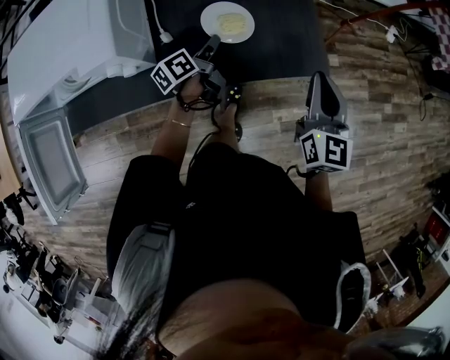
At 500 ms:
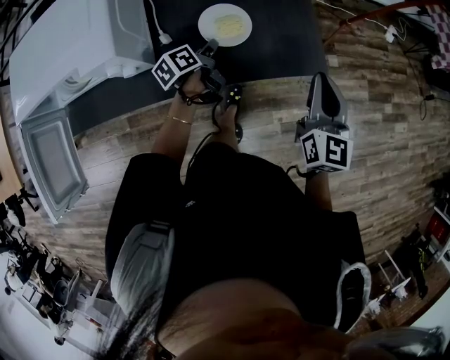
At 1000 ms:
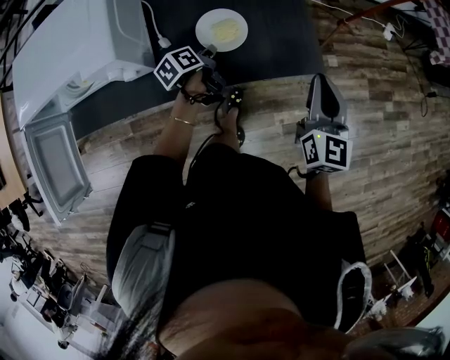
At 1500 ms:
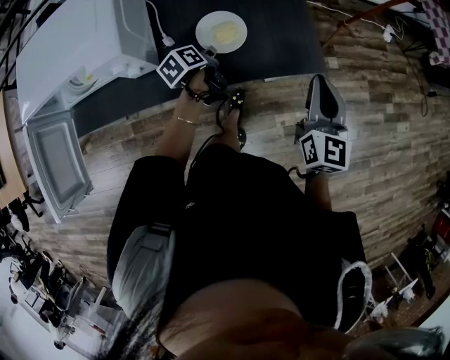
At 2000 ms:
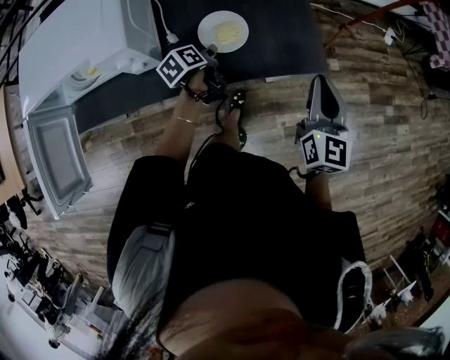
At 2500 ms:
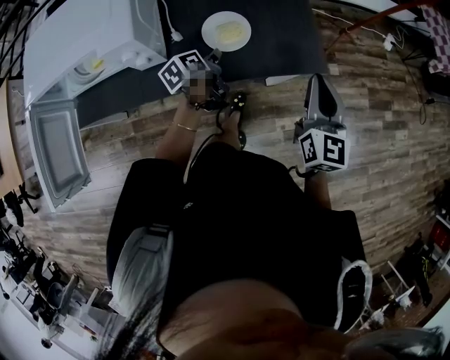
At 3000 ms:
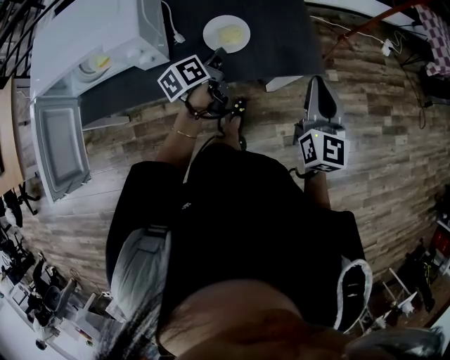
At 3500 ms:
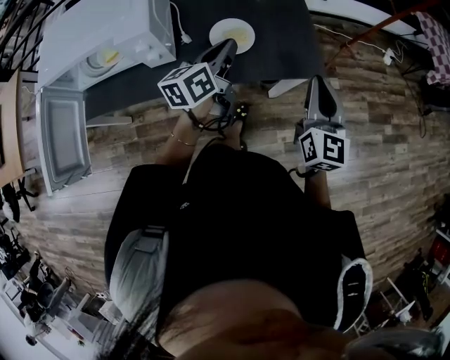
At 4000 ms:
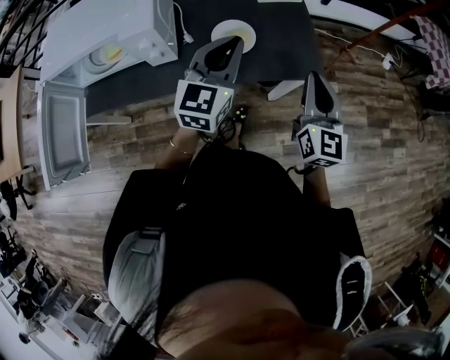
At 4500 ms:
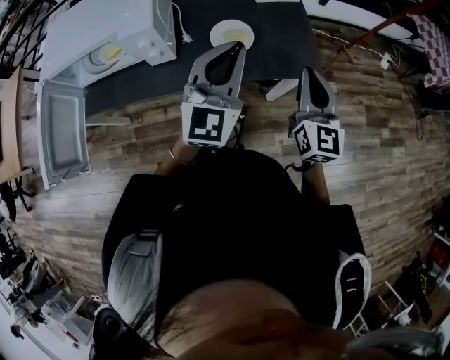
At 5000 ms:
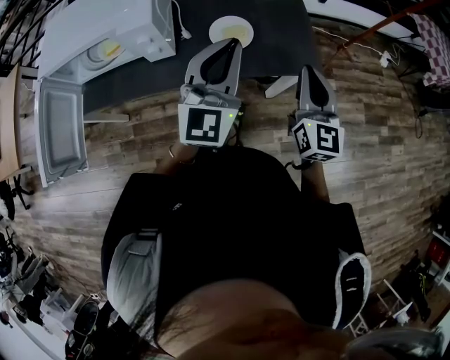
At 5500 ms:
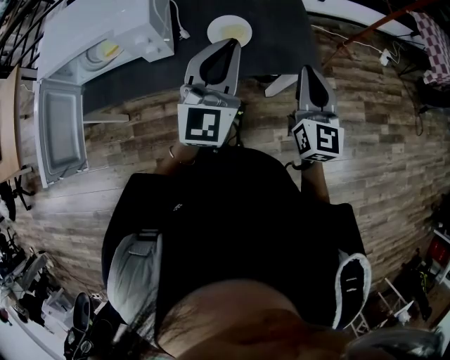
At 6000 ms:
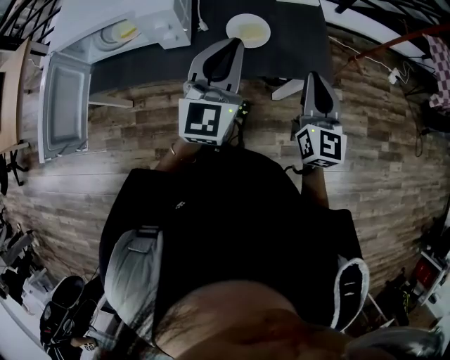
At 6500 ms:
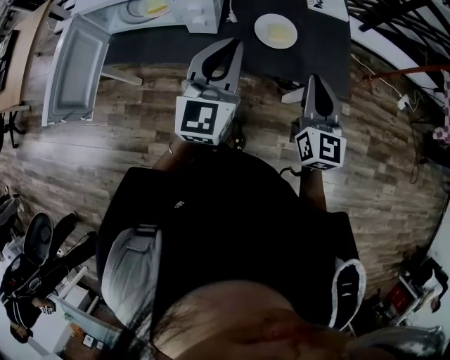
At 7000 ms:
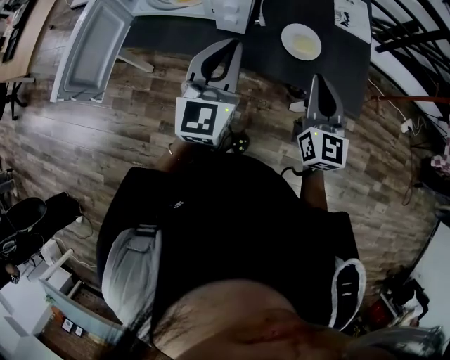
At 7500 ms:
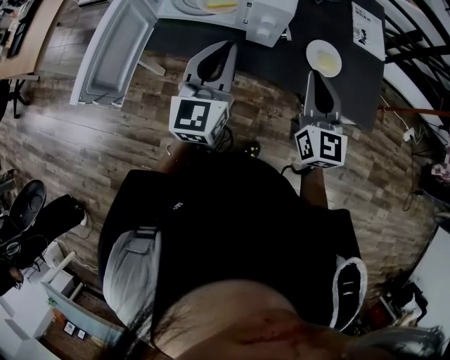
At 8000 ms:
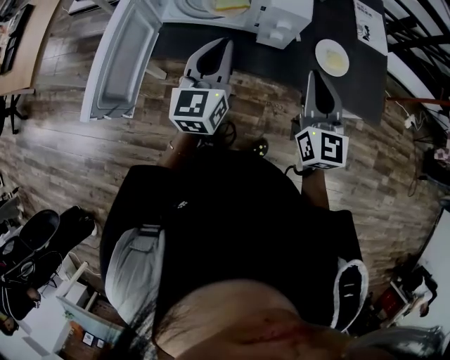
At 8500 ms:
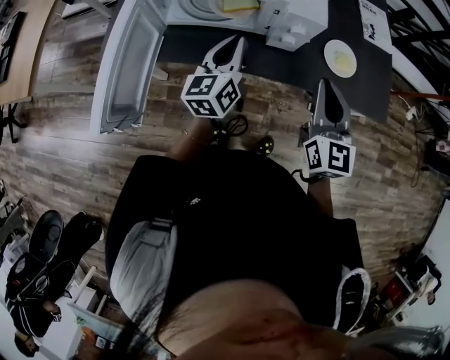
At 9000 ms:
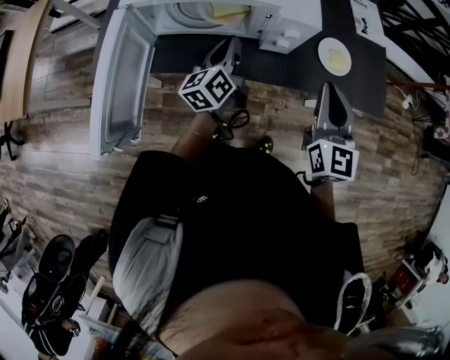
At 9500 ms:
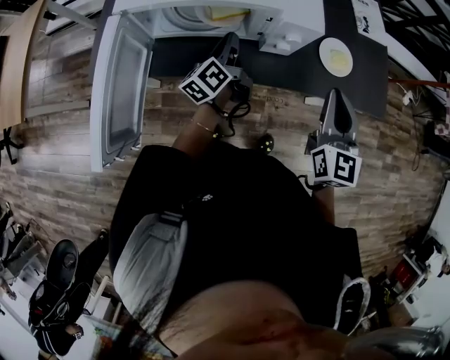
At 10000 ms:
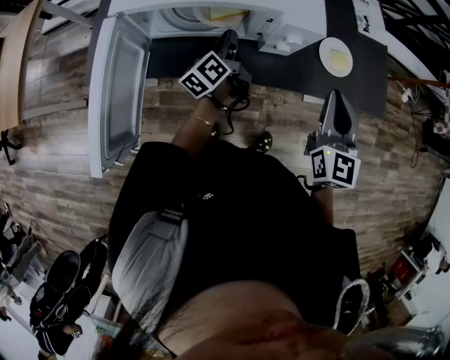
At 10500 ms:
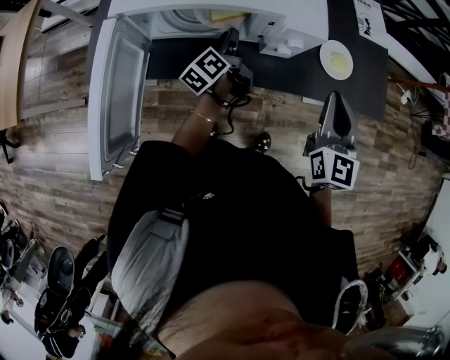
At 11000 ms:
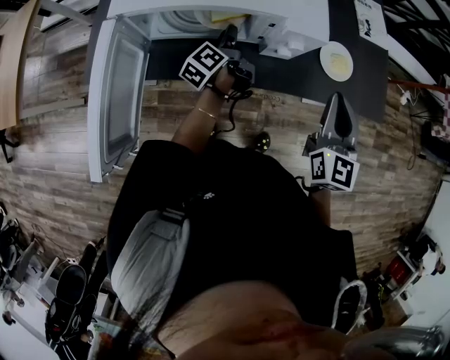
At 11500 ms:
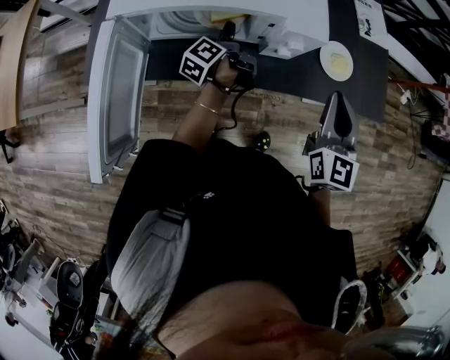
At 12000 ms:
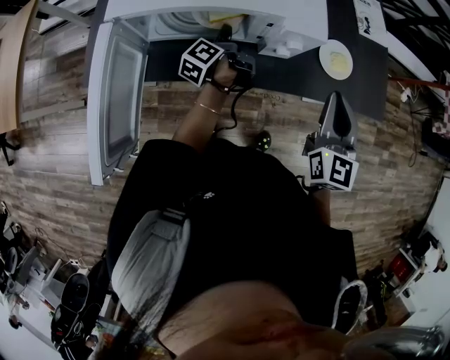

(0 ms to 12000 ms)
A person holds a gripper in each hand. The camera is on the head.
0 ms - 2000 ms: The left gripper changes place by roughly 5 cm, and changes its angle by about 20 degrees.
2000 ms - 4000 ms: The right gripper ends up some 5 cm from where it was. Meanwhile the left gripper moves upward, about 30 cm, and twists some 70 degrees clockwise, seen from behind.
4000 ms - 6000 ms: The left gripper heads backward, covering approximately 5 cm.
6000 ms - 8000 ms: The two grippers go some 30 cm to the left. The left gripper changes its angle by approximately 20 degrees.
8000 ms - 10000 ms: The left gripper goes about 20 cm downward and forward, and rolls counterclockwise, seen from behind, by roughly 50 degrees.
10000 ms - 12000 ms: The left gripper changes its angle by approximately 30 degrees.

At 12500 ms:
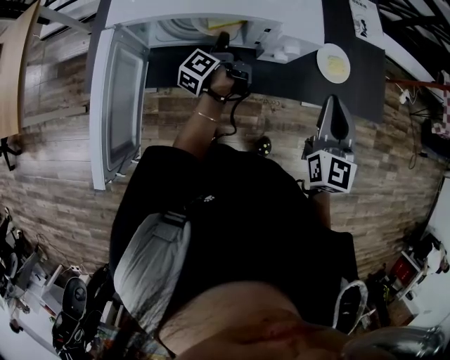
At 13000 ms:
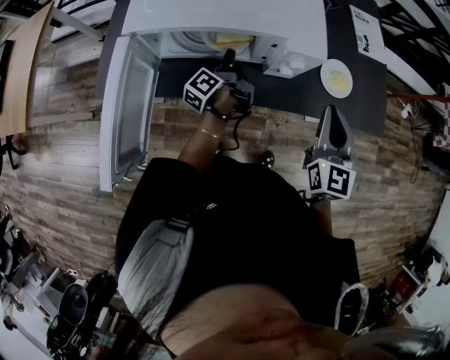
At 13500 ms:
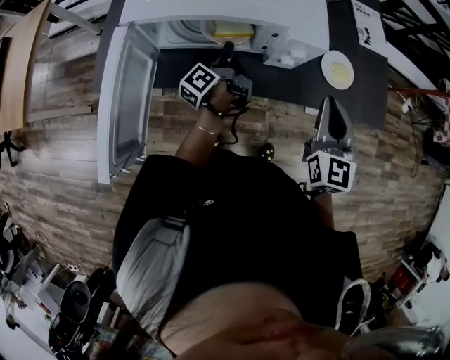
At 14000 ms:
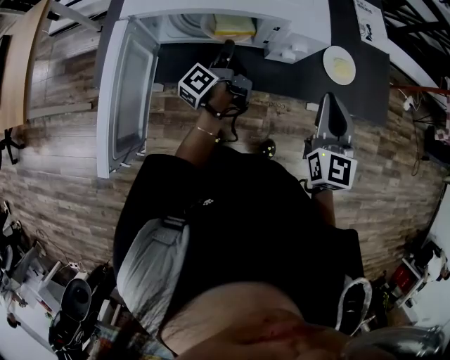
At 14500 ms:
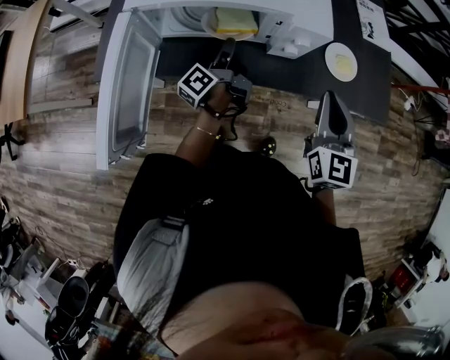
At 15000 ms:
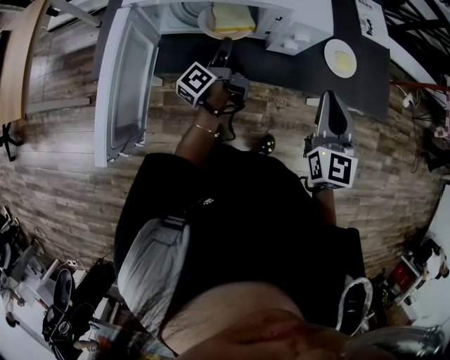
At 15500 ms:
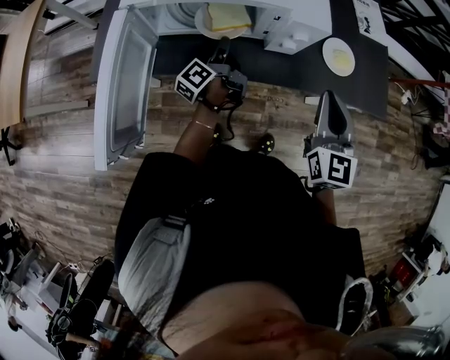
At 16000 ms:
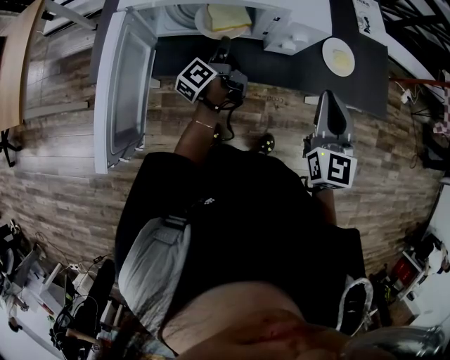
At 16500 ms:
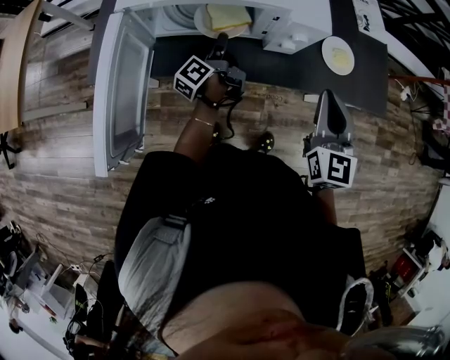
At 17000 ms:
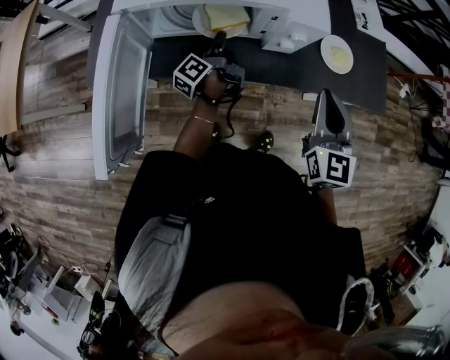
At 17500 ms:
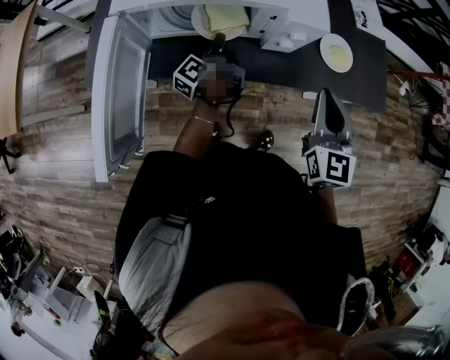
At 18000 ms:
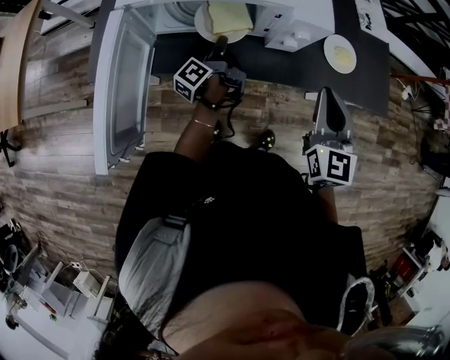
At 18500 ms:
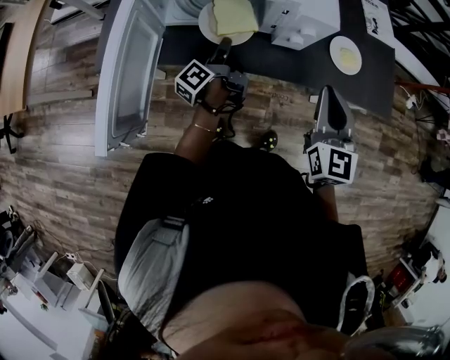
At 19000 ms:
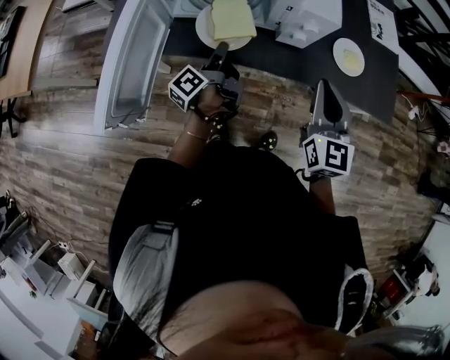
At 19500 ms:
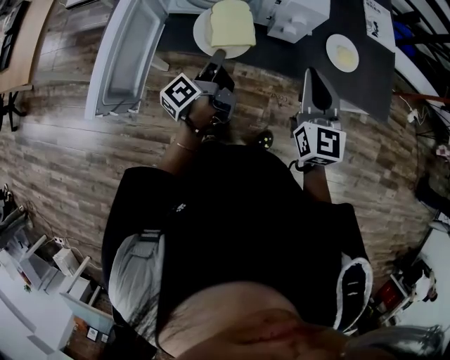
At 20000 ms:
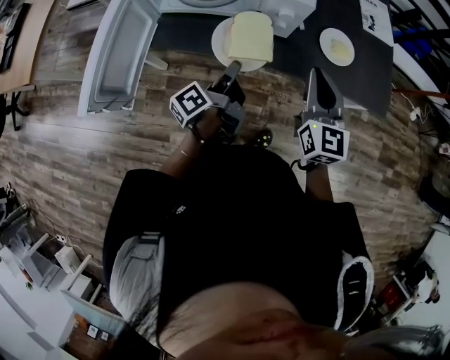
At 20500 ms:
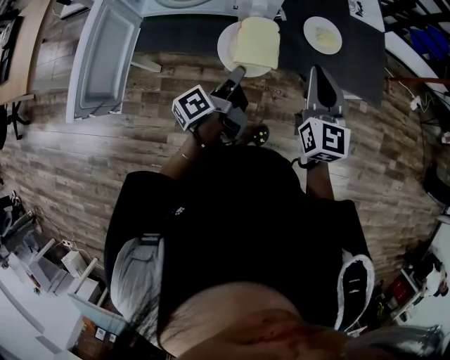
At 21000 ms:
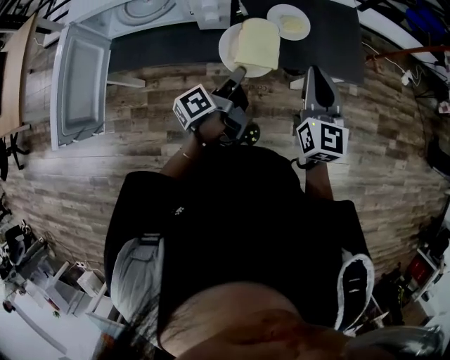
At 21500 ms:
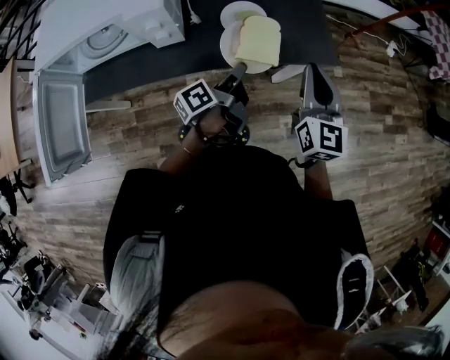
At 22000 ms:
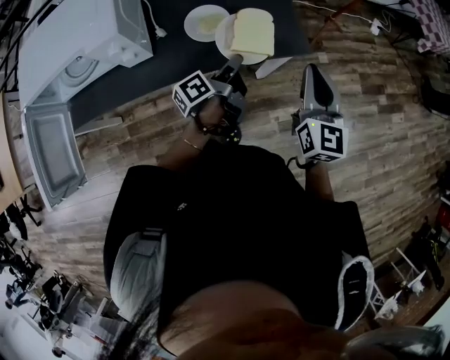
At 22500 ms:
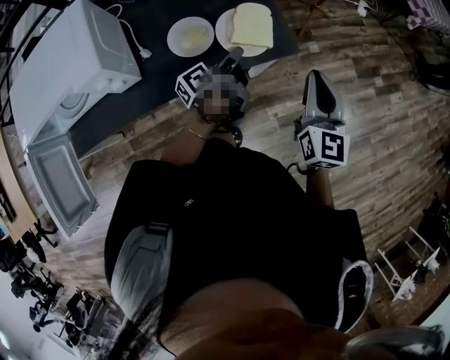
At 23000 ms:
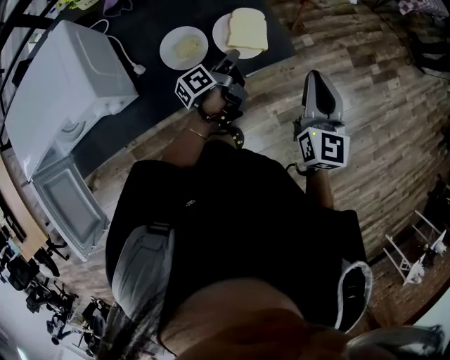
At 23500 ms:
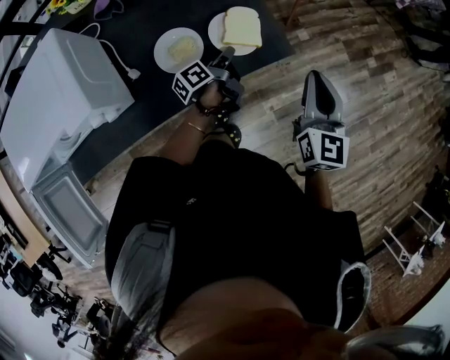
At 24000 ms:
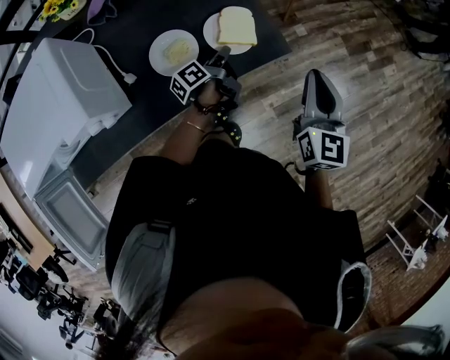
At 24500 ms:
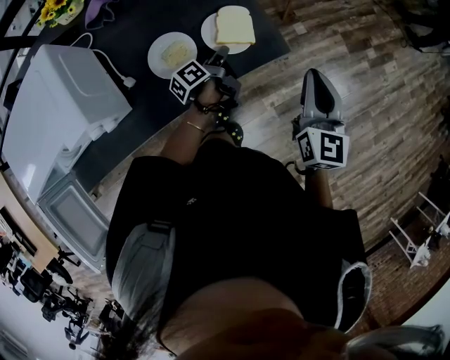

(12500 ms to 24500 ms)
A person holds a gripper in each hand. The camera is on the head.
12500 ms - 14500 ms: The left gripper travels backward by roughly 5 cm.
14500 ms - 18500 ms: There are only small adjustments of the grippers.
18500 ms - 20500 ms: The right gripper is displaced to the right by some 10 cm. Meanwhile the left gripper moves to the right and backward, approximately 20 cm.
20500 ms - 22500 ms: The left gripper changes place by about 40 cm, and swivels about 30 degrees; the right gripper ends up approximately 30 cm from where it was, and swivels roughly 30 degrees.
22500 ms - 24500 ms: The left gripper heads downward and forward, covering about 10 cm.

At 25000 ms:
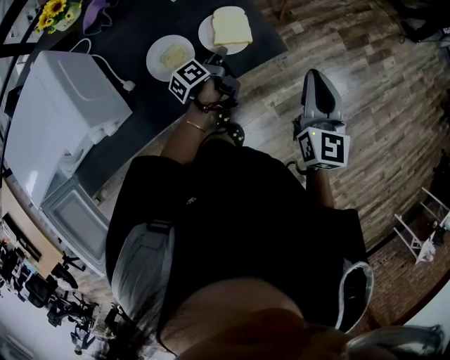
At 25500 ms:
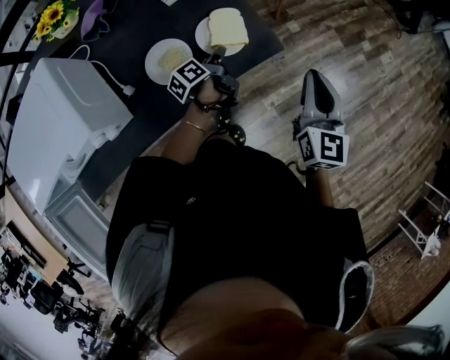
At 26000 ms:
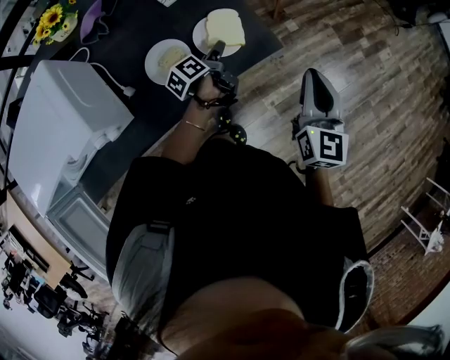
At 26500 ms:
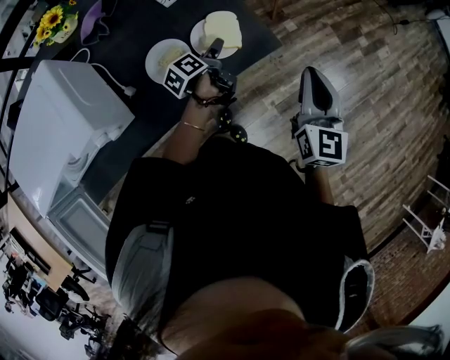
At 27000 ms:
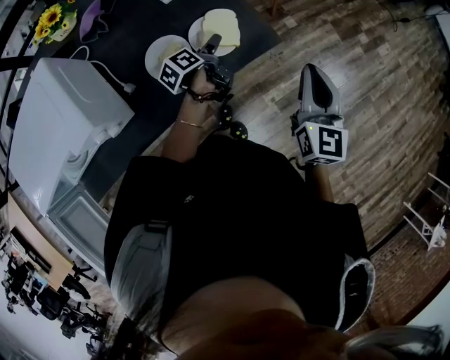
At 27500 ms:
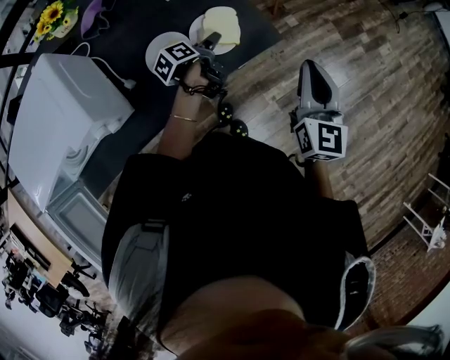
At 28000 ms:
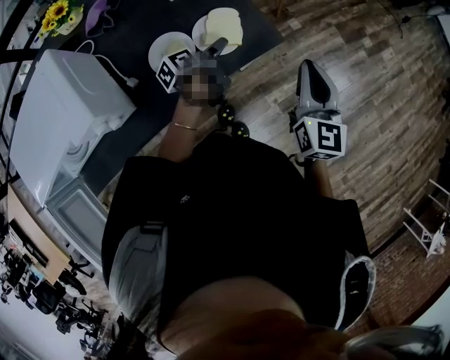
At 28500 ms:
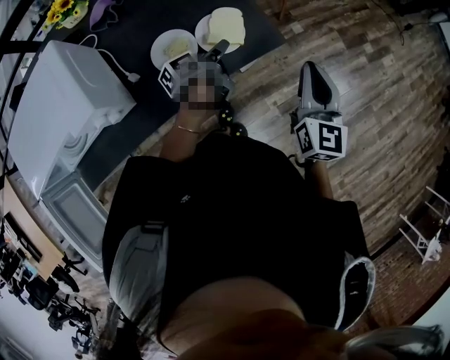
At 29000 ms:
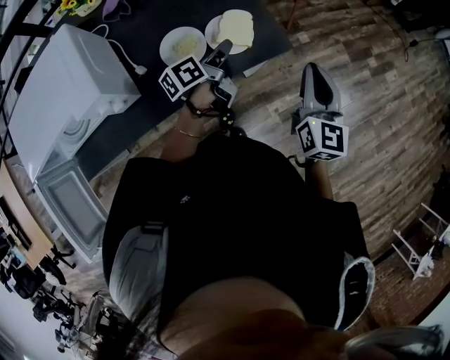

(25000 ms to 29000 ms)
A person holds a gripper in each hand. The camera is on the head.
25000 ms - 27000 ms: The left gripper opens up.
27000 ms - 29000 ms: The left gripper goes about 10 cm upward, turns by about 20 degrees, and closes up.
